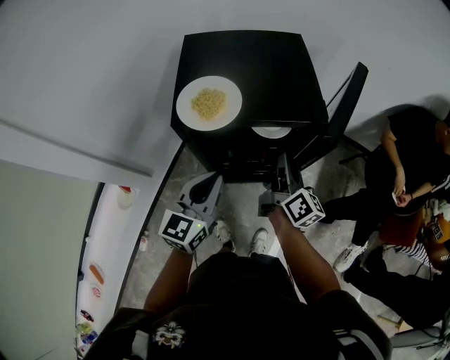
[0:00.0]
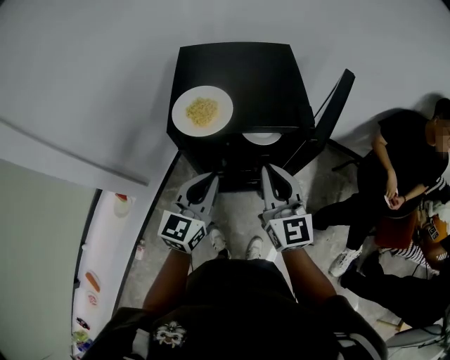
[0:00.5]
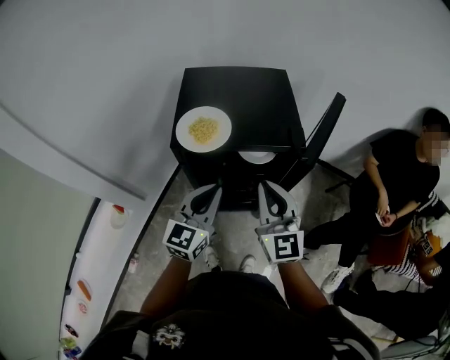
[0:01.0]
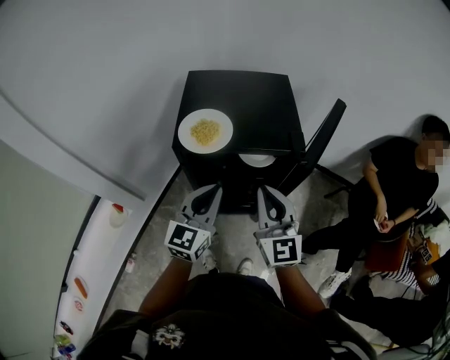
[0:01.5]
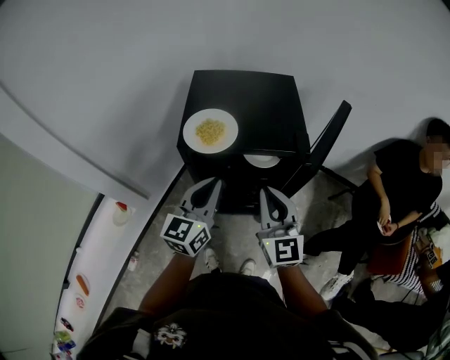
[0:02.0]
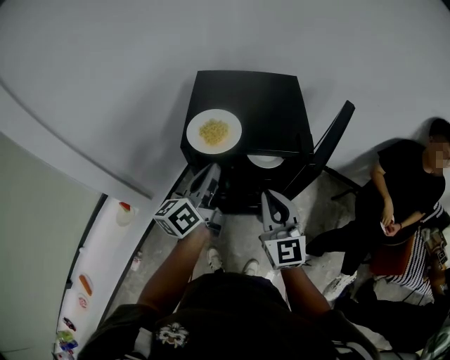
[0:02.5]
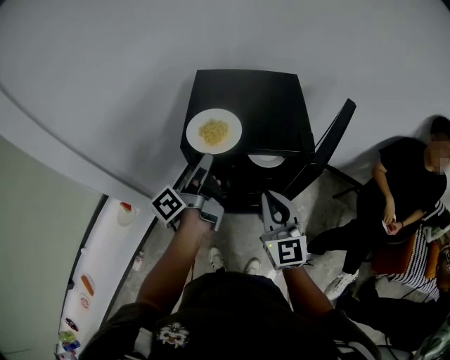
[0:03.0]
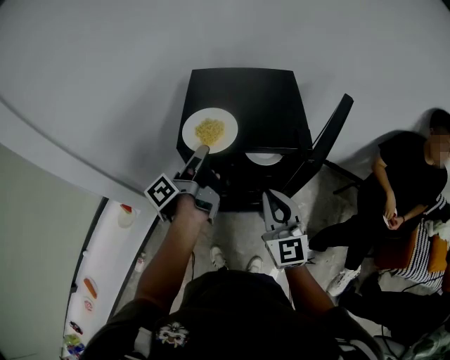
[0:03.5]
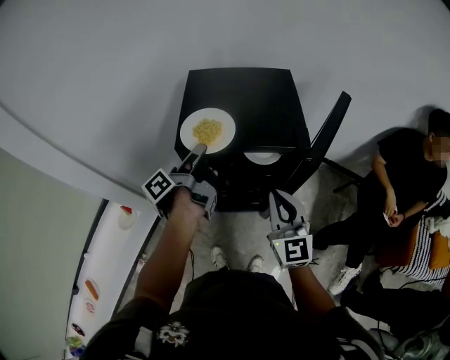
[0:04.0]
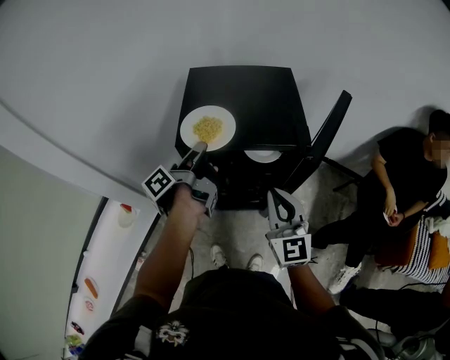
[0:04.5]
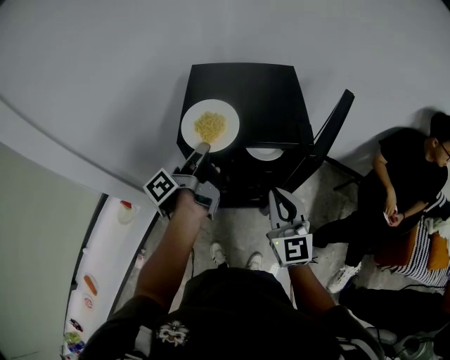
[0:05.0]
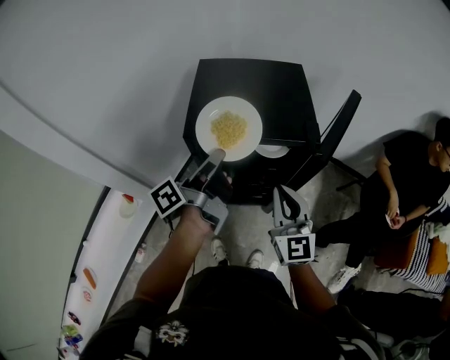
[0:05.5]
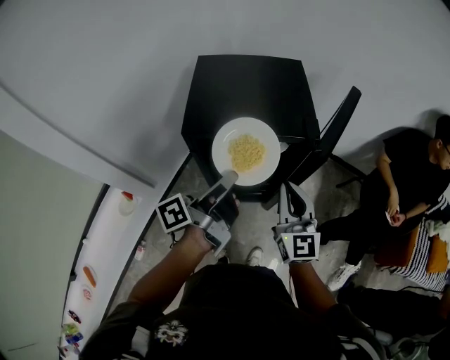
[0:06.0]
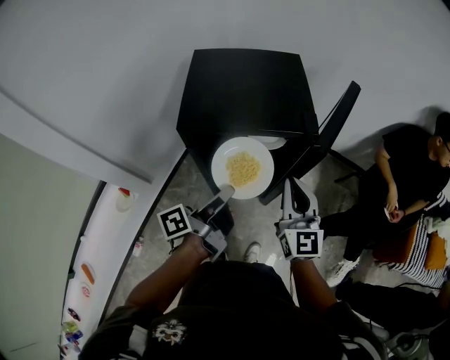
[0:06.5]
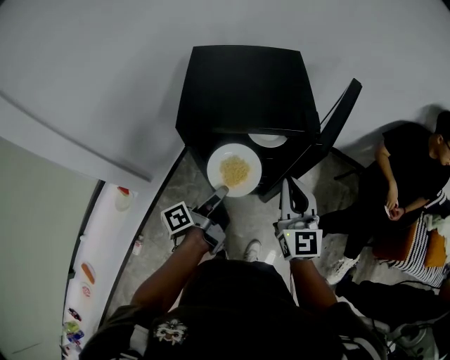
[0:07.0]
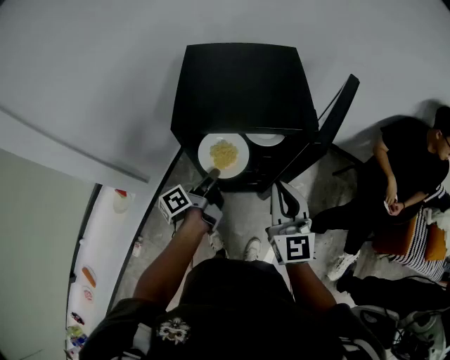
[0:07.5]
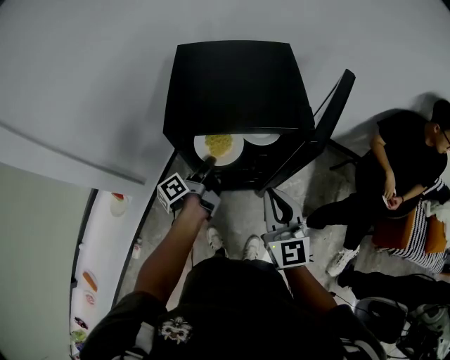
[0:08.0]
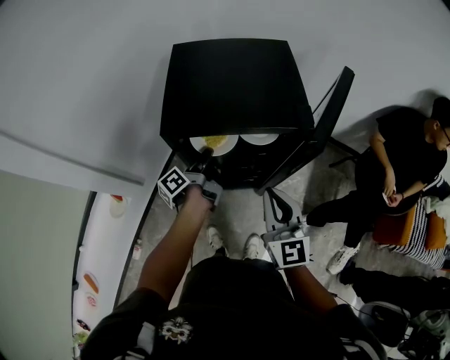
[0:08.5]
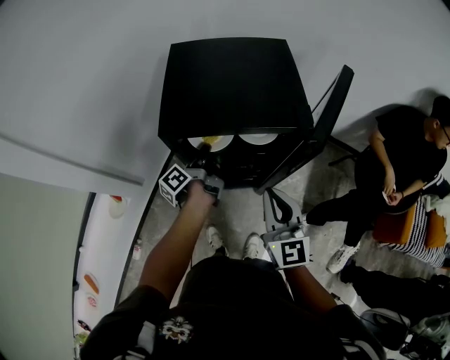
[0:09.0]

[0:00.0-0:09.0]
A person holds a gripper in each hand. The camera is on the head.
0.0 to 2.0 s: The right gripper moves upward and backward, about 15 cm, and twists some 50 degrees counterclockwise, seen from behind. Meanwhile the left gripper shifts roughly 5 cm upward.
2.0 to 4.5 s: The left gripper travels forward by approximately 10 cm, rolls counterclockwise, seen from behind, by approximately 80 degrees, and opens and closes again.
4.5 to 7.0 s: The left gripper moves backward, downward and to the right, some 15 cm.
7.0 to 9.0 s: The left gripper moves forward, some 15 cm.

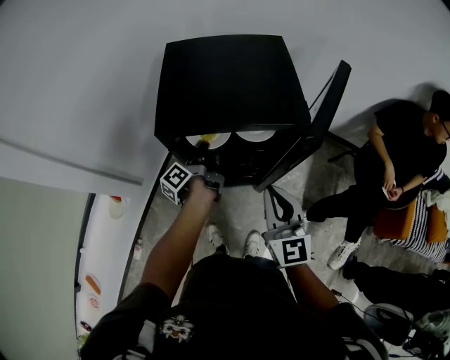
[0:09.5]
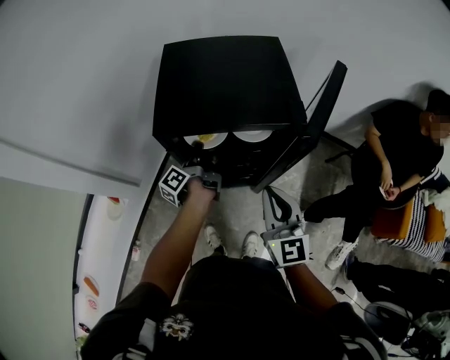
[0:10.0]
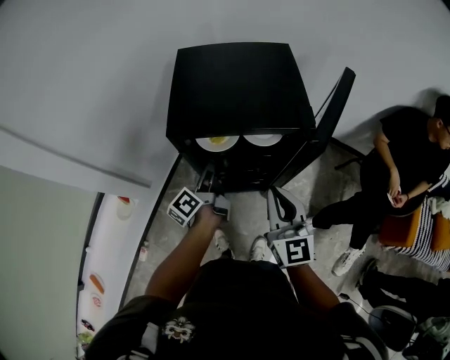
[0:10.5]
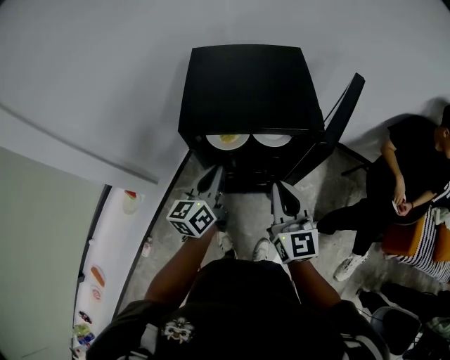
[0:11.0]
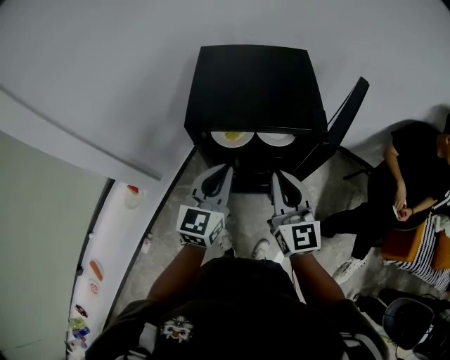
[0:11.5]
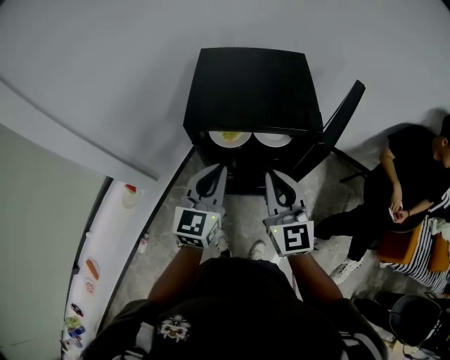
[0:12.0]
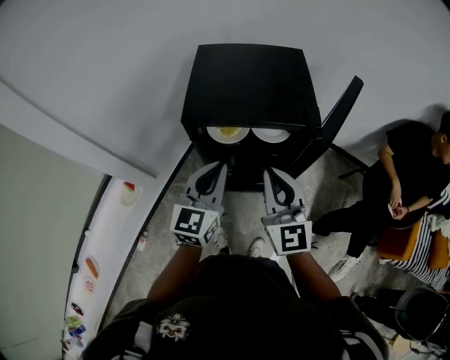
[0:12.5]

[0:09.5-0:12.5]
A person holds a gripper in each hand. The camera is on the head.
9.5 to 11.0 s: The left gripper heads upward and backward, covering approximately 15 cm, and twists approximately 60 degrees clockwise, seen from behind.
11.0 to 12.5 s: Both grippers move upward, roughly 5 cm. The left gripper changes its angle by approximately 30 degrees.

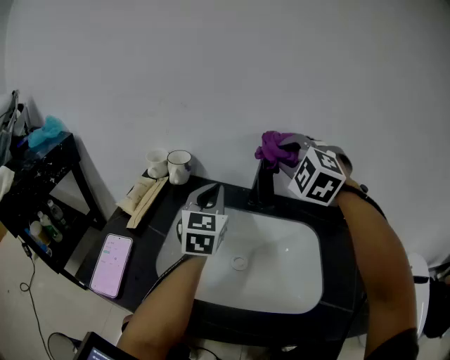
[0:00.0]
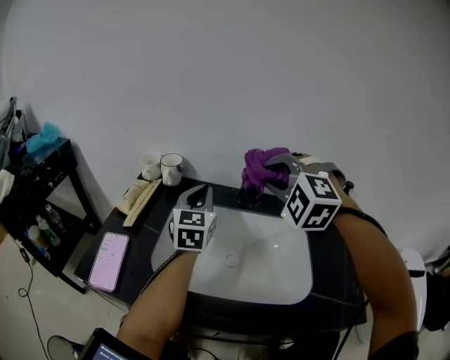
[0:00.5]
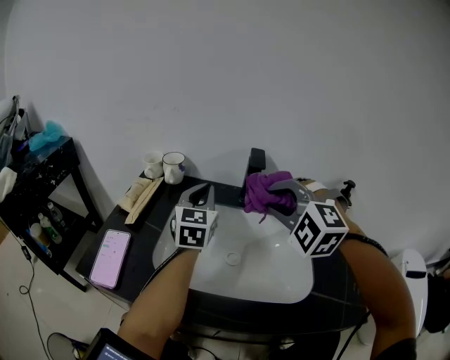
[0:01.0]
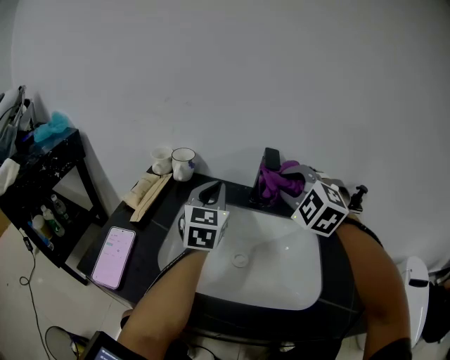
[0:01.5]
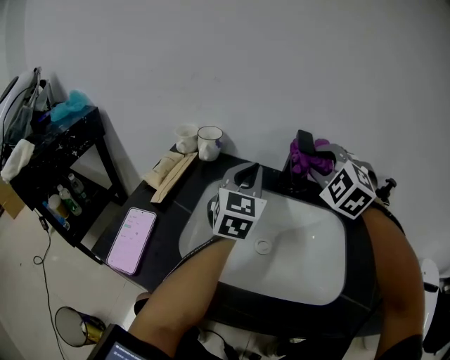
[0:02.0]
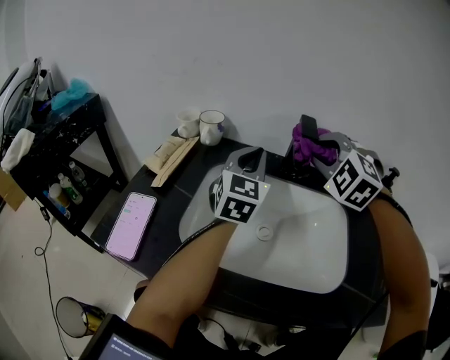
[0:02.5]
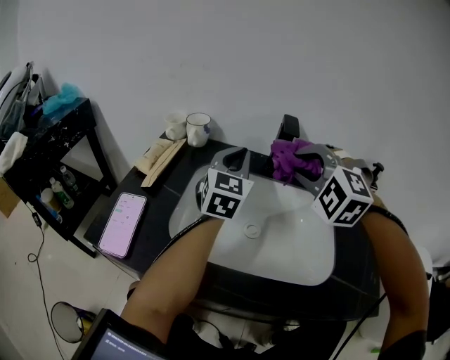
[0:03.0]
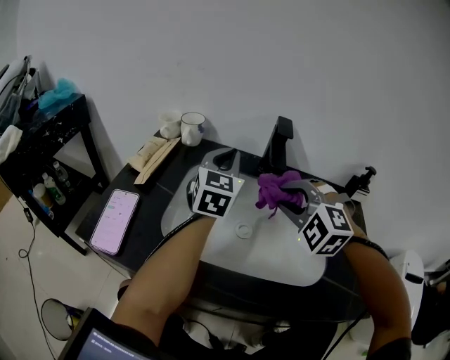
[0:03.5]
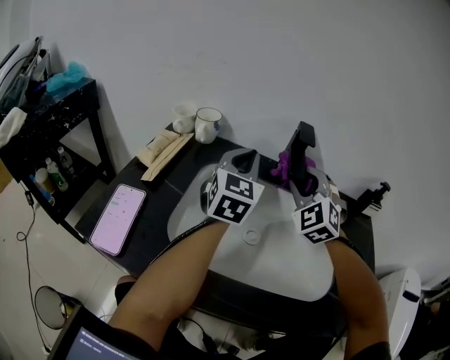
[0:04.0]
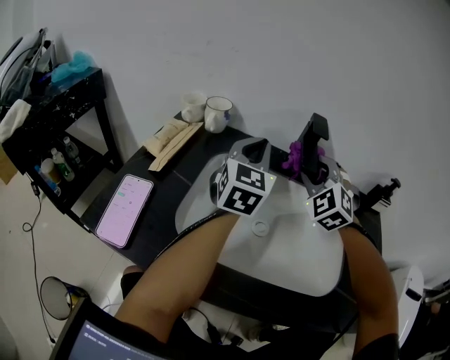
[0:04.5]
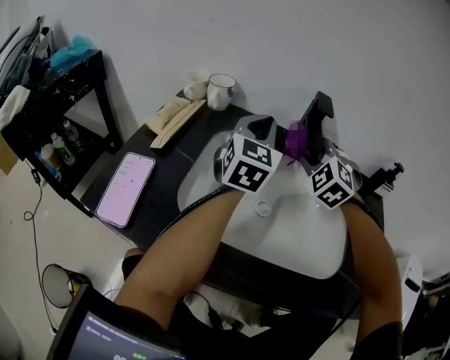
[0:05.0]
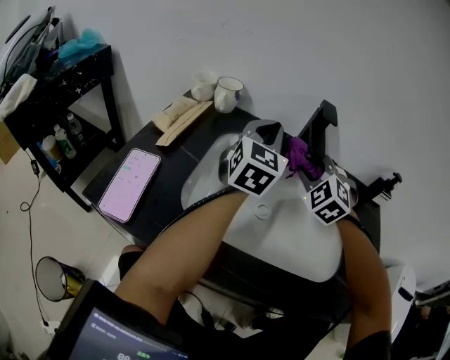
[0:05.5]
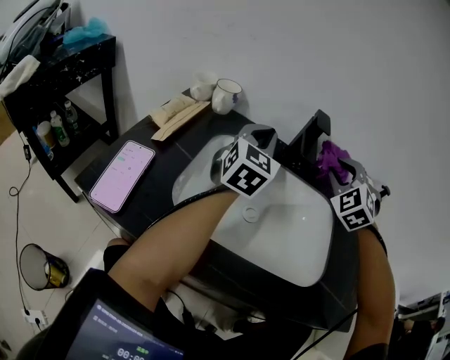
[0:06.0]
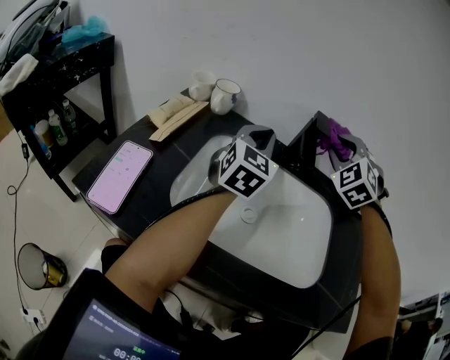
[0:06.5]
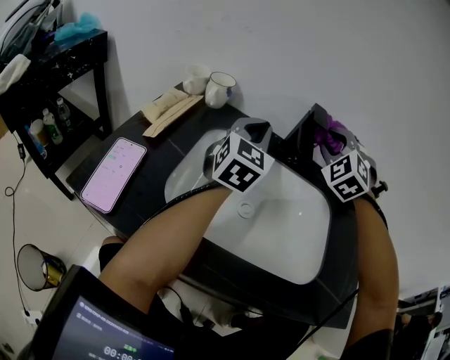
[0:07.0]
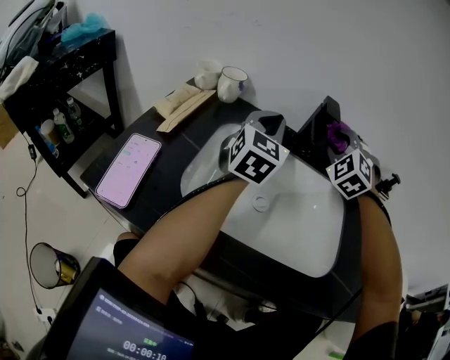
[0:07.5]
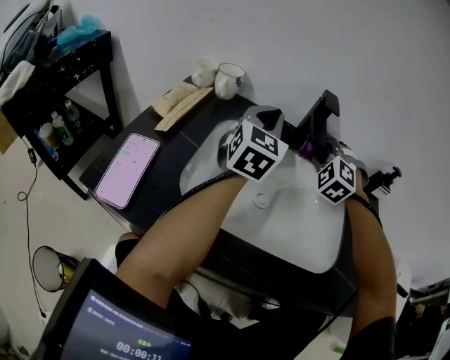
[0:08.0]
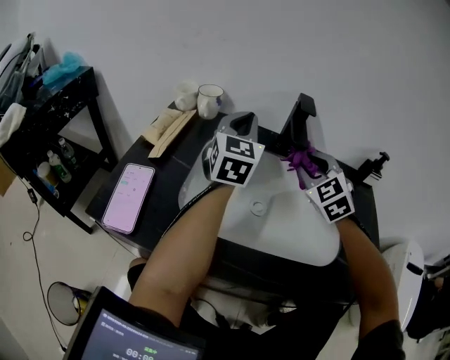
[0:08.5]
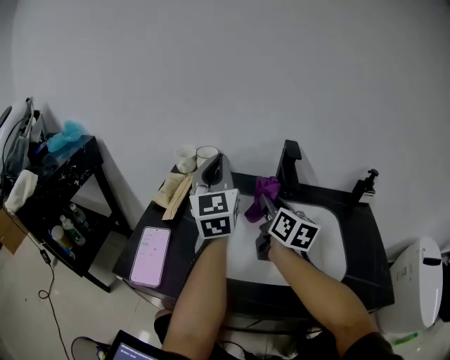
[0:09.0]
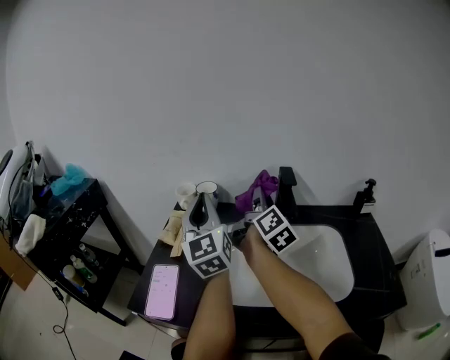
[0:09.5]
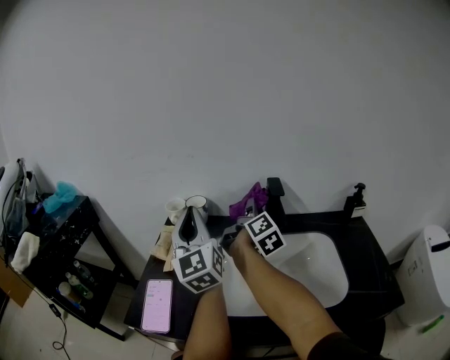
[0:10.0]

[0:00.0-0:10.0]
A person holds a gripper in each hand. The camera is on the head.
0.0 to 2.0 s: The right gripper shifts roughly 5 cm downward, and reaches roughly 15 cm backward, then returns.
2.0 to 4.0 s: The right gripper is displaced downward by about 5 cm, and moves about 10 cm backward and comes back.
4.0 to 6.0 s: The right gripper travels to the right by about 10 cm.
6.0 to 8.0 s: The right gripper heads downward and to the left, covering about 10 cm.
8.0 to 10.0 s: The right gripper moves upward and to the left, some 10 cm, and rotates around the line of its fingers by about 140 degrees, clockwise from behind. The left gripper heads to the left, upward and backward, covering approximately 20 cm, and rotates roughly 30 degrees.

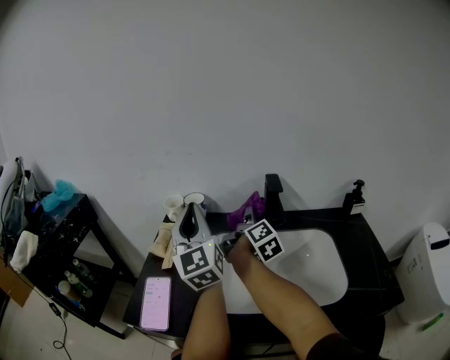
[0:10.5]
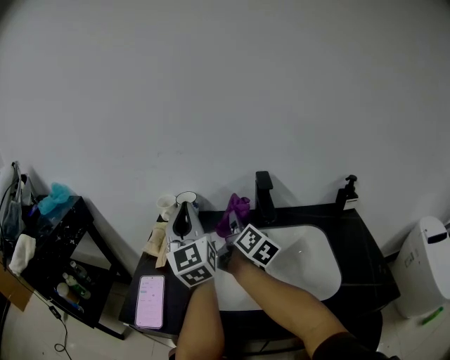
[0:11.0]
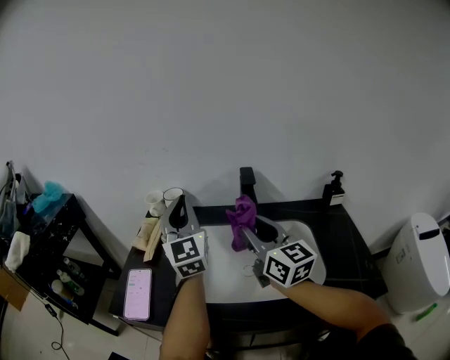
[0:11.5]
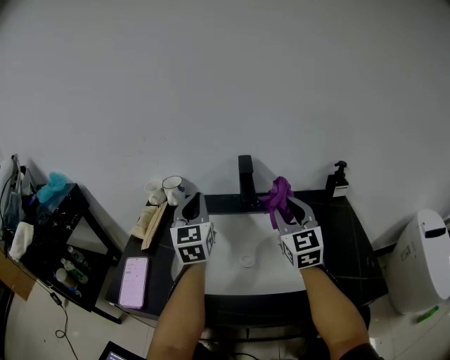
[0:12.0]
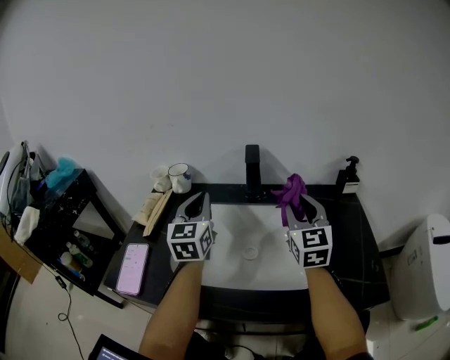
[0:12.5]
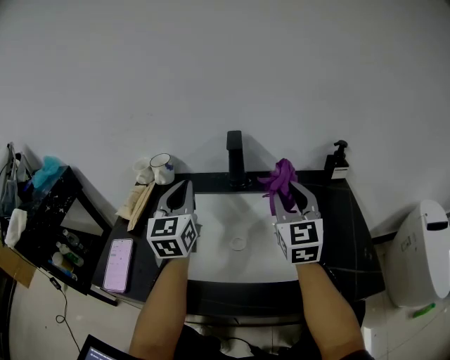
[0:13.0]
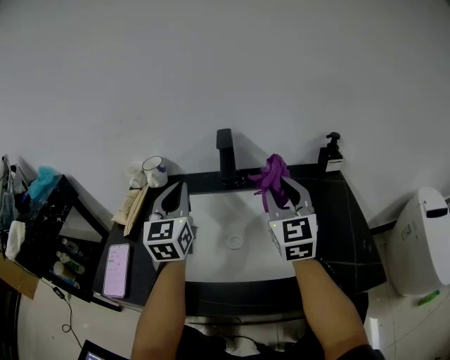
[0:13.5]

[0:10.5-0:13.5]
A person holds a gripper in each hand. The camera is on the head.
10.5 to 12.0 s: The right gripper is displaced backward and to the right by about 15 cm, and twists approximately 80 degrees counterclockwise, seen from behind. The left gripper heads to the right and downward, covering roughly 10 cm, and turns by approximately 20 degrees.
12.0 to 13.5 s: The grippers move only a little.

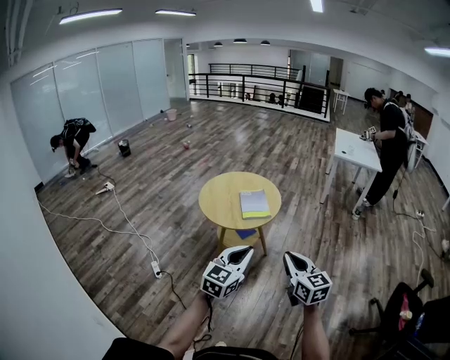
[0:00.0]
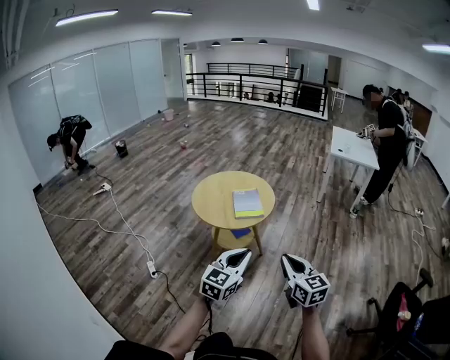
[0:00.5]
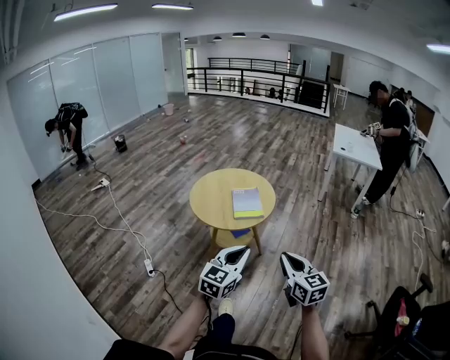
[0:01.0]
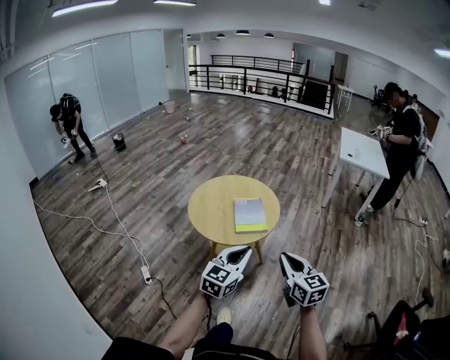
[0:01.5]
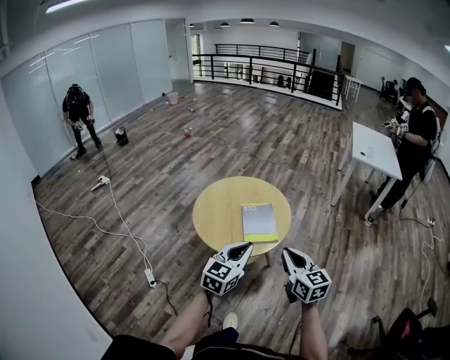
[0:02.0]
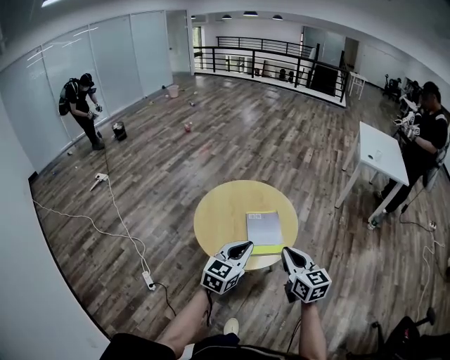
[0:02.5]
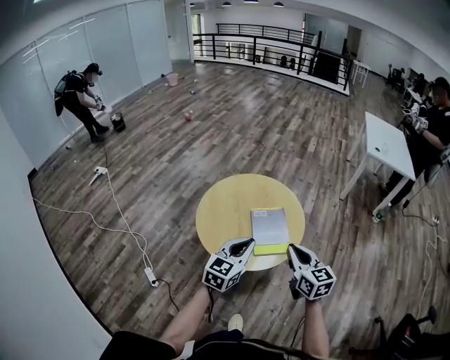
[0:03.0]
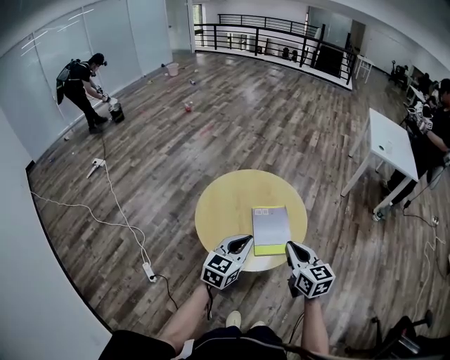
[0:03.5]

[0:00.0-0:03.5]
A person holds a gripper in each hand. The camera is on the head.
0.0 to 2.0 s: The two grippers go roughly 25 cm forward.
2.0 to 3.5 s: The two grippers go approximately 15 cm forward and to the left.
